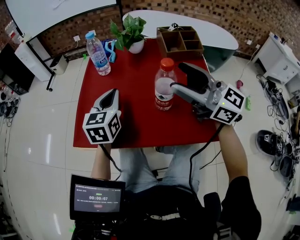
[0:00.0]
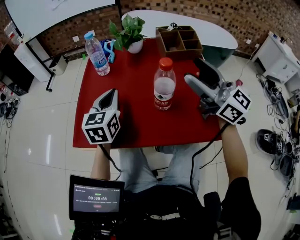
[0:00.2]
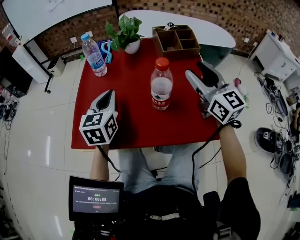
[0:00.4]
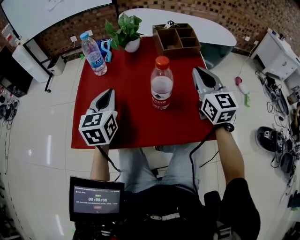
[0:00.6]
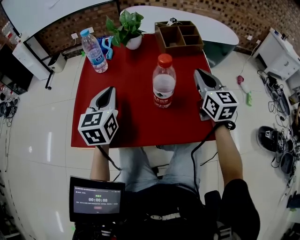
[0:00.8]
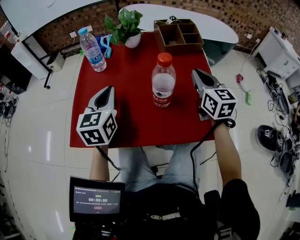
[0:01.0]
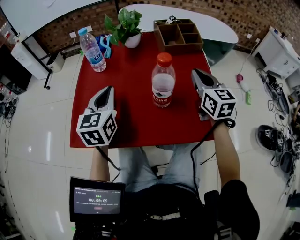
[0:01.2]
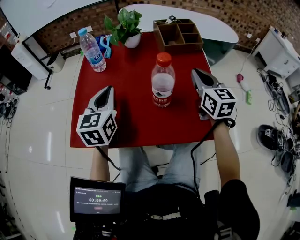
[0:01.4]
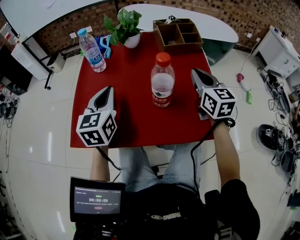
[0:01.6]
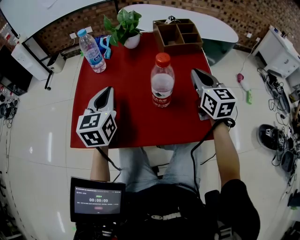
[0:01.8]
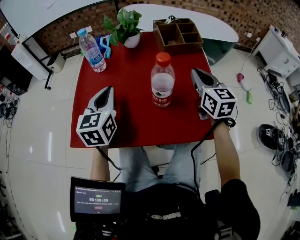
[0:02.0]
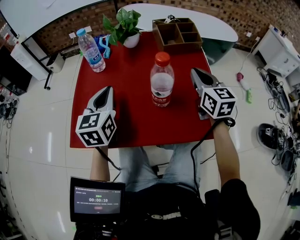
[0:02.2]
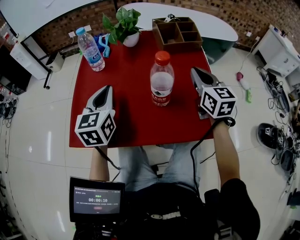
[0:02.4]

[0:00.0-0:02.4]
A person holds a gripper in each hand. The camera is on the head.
0:00.0 to 0:01.2: The right gripper moves downward, to the right and forward, some 20 cm, rotates about 50 degrees, and closes.
0:01.2 to 0:02.4: The two grippers keep their place.

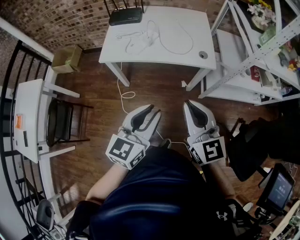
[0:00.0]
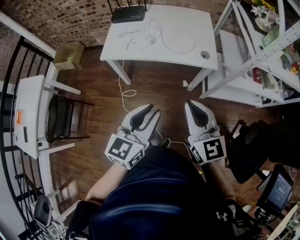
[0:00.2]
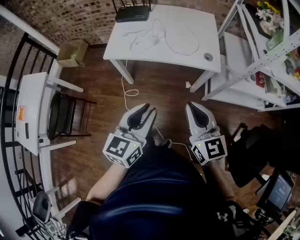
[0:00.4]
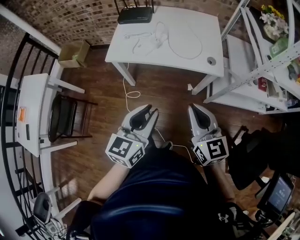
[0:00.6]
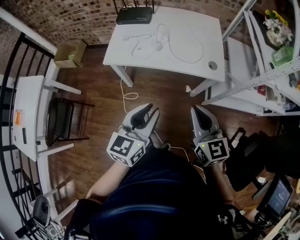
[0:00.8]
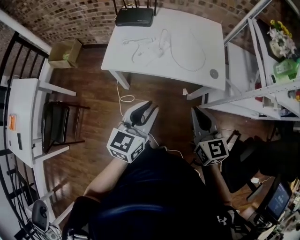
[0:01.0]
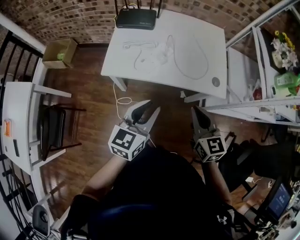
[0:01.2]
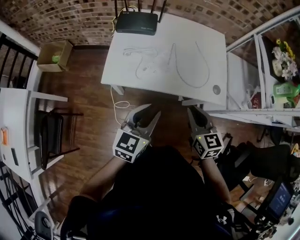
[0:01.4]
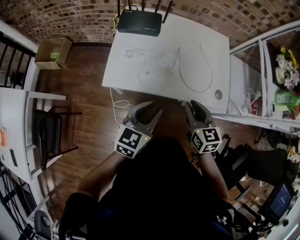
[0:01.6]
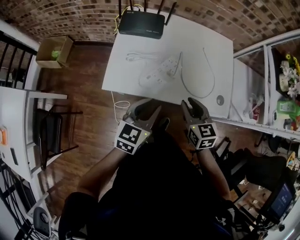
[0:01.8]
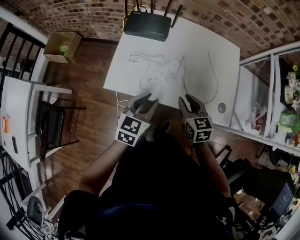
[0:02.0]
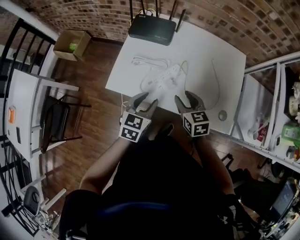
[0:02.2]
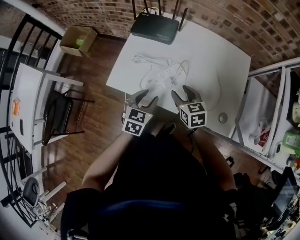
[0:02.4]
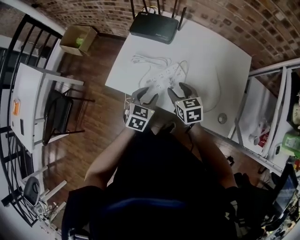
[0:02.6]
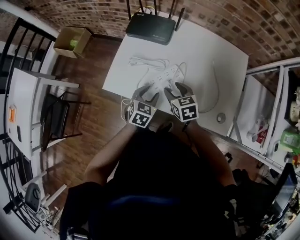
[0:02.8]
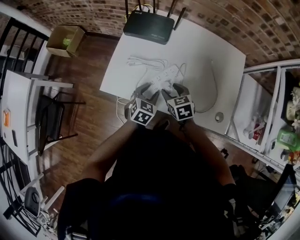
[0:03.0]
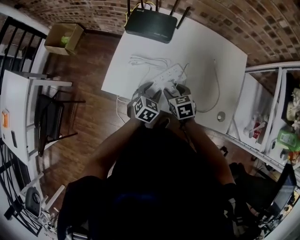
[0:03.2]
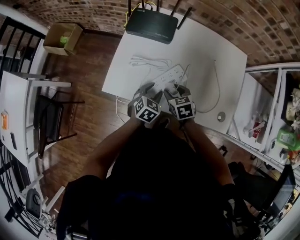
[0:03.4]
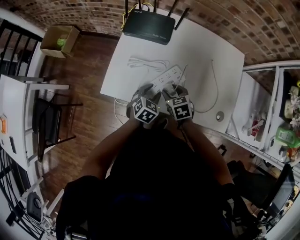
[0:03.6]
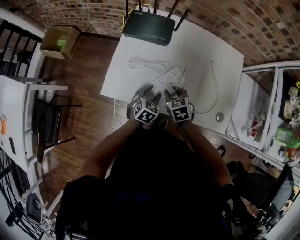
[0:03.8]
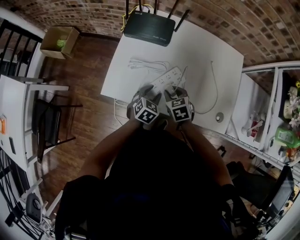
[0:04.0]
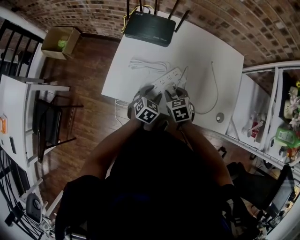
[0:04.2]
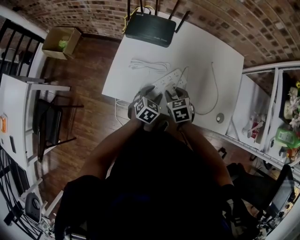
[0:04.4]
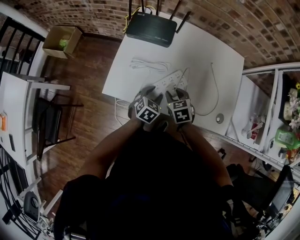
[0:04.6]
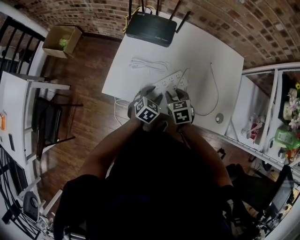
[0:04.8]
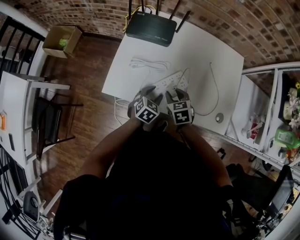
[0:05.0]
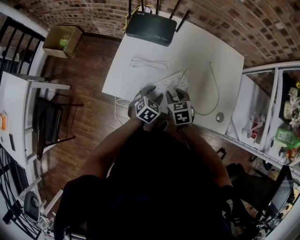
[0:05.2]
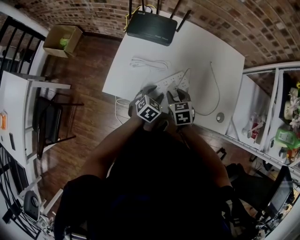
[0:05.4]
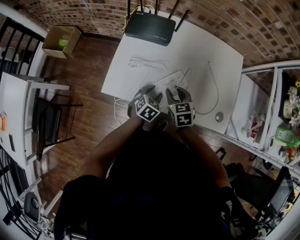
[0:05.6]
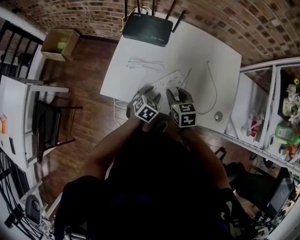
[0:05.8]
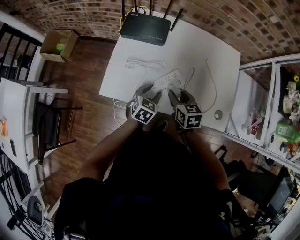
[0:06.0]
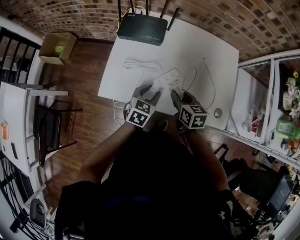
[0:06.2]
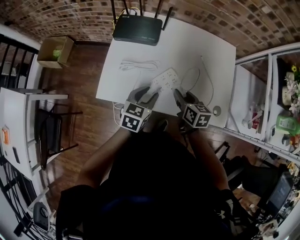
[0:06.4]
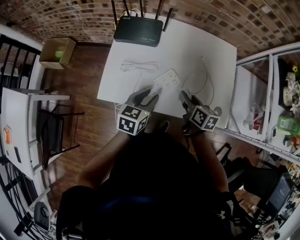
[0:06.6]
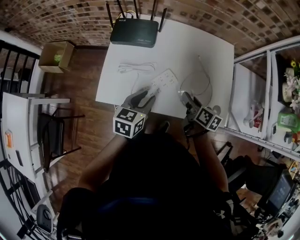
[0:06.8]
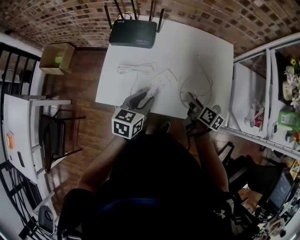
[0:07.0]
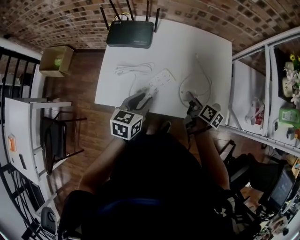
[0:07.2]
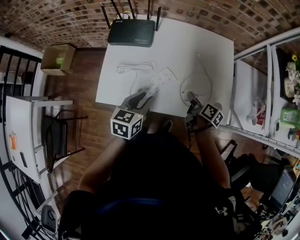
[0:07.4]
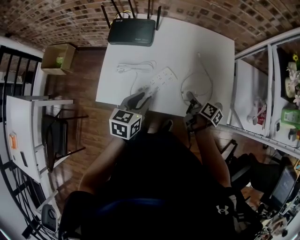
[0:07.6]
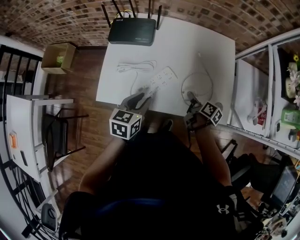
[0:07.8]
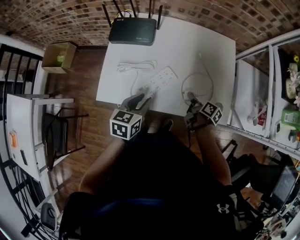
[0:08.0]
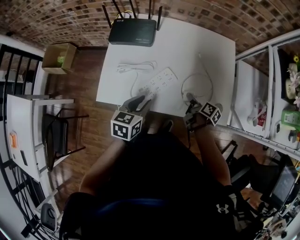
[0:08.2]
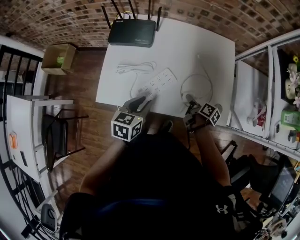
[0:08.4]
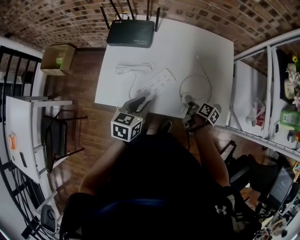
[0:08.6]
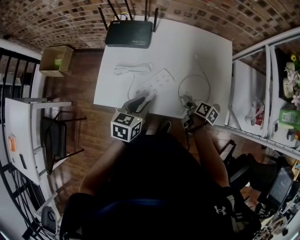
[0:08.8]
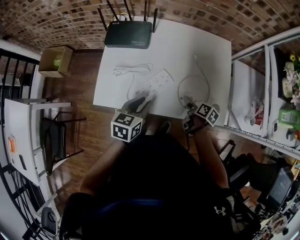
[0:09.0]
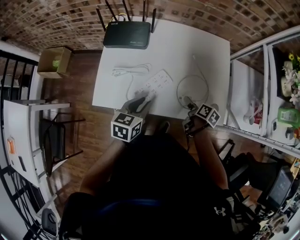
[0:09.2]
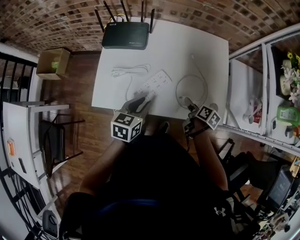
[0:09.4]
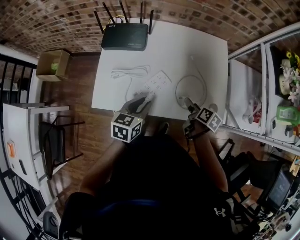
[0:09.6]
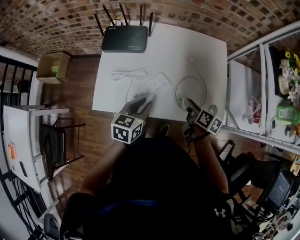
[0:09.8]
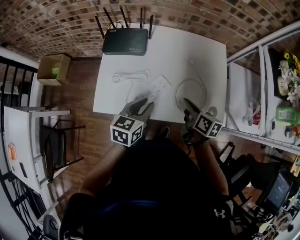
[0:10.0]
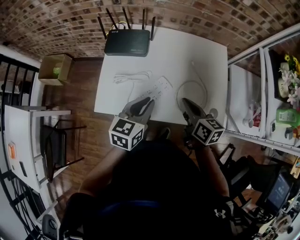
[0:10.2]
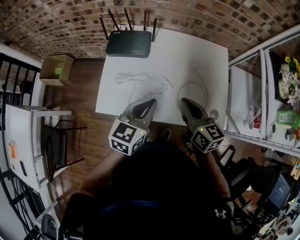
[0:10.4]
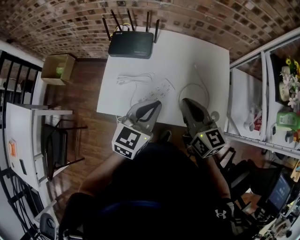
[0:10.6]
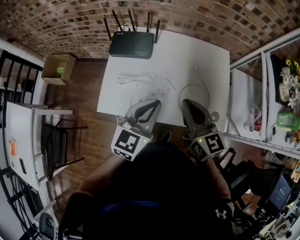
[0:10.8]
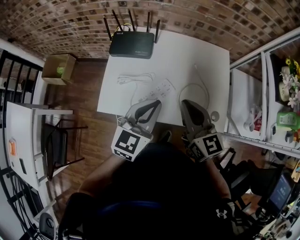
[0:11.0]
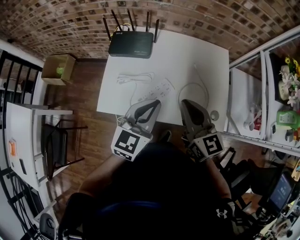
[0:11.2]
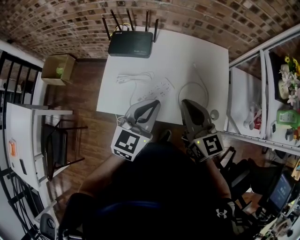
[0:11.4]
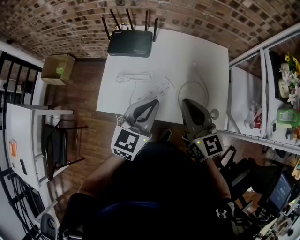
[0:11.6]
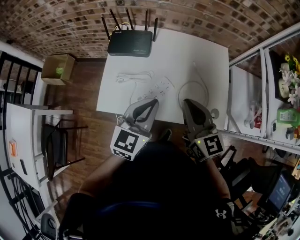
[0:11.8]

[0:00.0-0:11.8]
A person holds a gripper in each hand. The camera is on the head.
0:00.0 to 0:01.4: The right gripper travels forward and downward by roughly 25 cm, and turns by roughly 20 degrees, while the left gripper heads forward and to the left, covering about 25 cm.
0:01.4 to 0:03.0: The right gripper travels forward and downward by roughly 25 cm, turns by some 30 degrees, and opens up. Meanwhile the left gripper travels downward and forward by about 30 cm, and turns by about 30 degrees.
0:03.0 to 0:04.4: The grippers stay close to where they were, moving slightly.
0:04.4 to 0:06.0: The right gripper is displaced upward by about 5 cm, and rotates some 20 degrees.
0:06.0 to 0:07.4: The left gripper travels upward by about 10 cm. The right gripper travels to the right by some 15 cm, and rotates around the line of its fingers by roughly 50 degrees, clockwise from behind.
0:07.4 to 0:08.8: The right gripper travels downward by approximately 5 cm, and opens.
0:08.8 to 0:10.4: The left gripper goes approximately 10 cm upward, and closes. The right gripper travels upward and to the left by some 25 cm, rotates around the line of its fingers by about 40 degrees, counterclockwise from behind, and closes up.
0:10.4 to 0:11.8: The right gripper heads upward, covering some 5 cm.

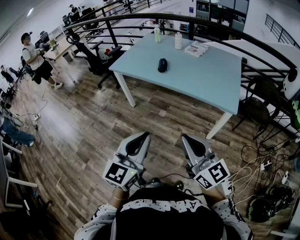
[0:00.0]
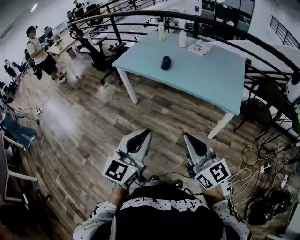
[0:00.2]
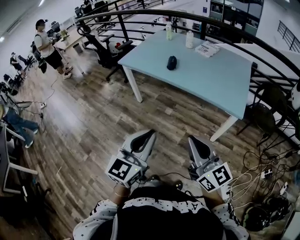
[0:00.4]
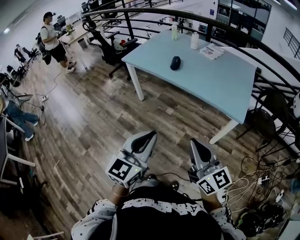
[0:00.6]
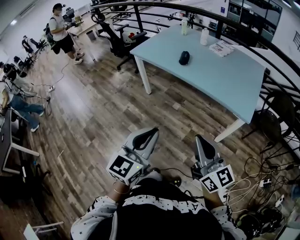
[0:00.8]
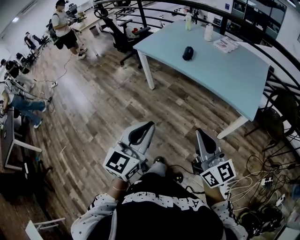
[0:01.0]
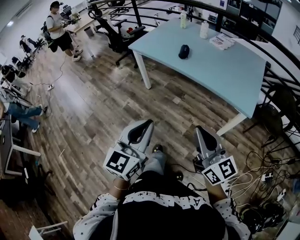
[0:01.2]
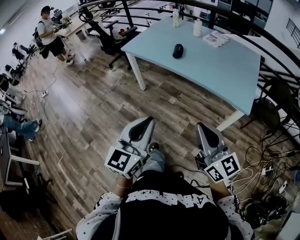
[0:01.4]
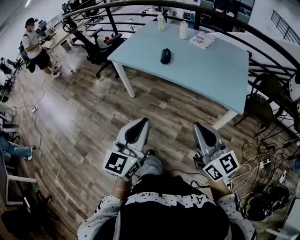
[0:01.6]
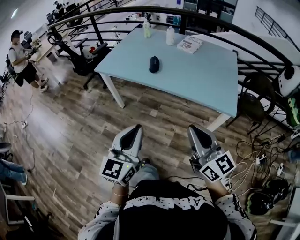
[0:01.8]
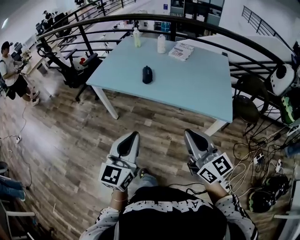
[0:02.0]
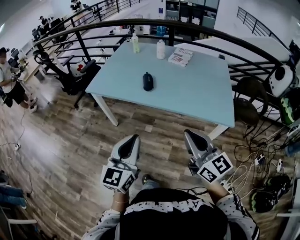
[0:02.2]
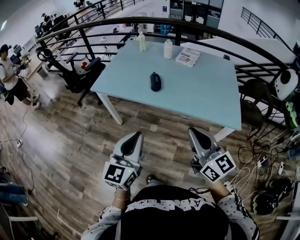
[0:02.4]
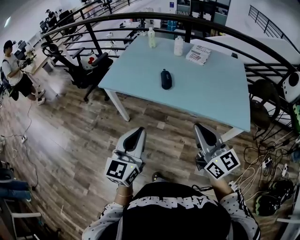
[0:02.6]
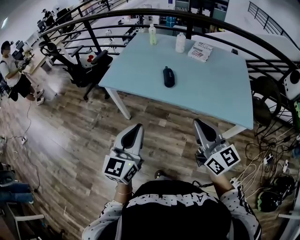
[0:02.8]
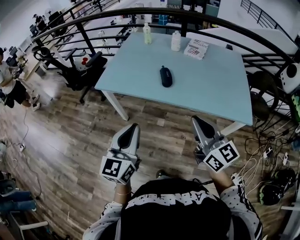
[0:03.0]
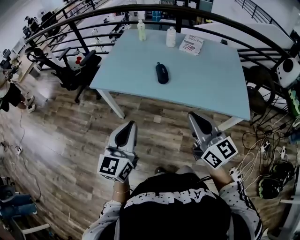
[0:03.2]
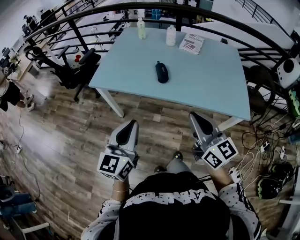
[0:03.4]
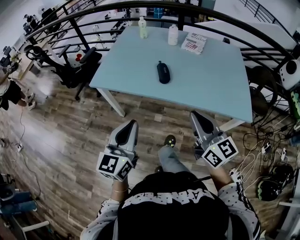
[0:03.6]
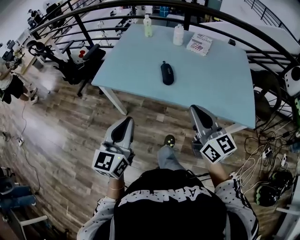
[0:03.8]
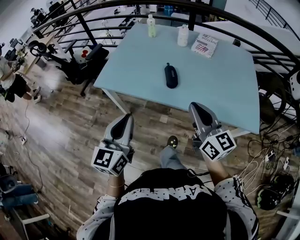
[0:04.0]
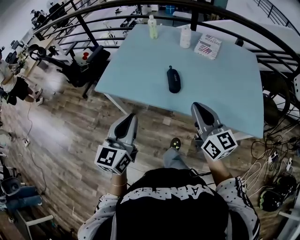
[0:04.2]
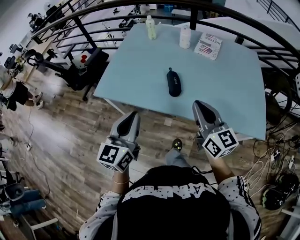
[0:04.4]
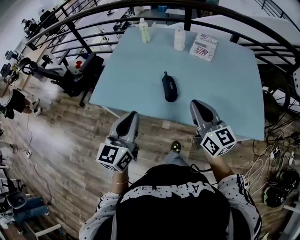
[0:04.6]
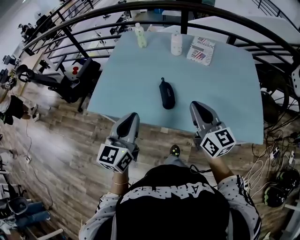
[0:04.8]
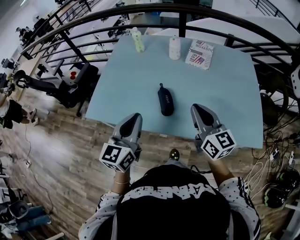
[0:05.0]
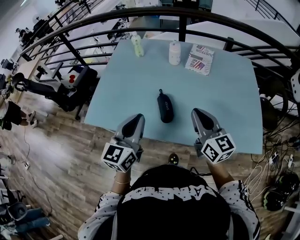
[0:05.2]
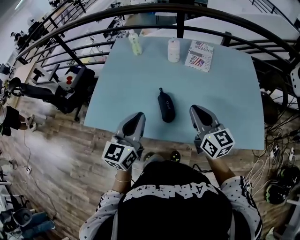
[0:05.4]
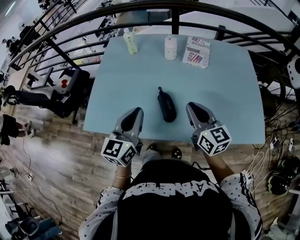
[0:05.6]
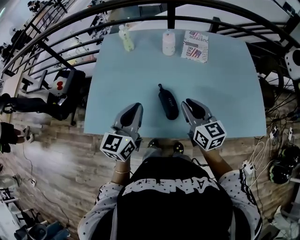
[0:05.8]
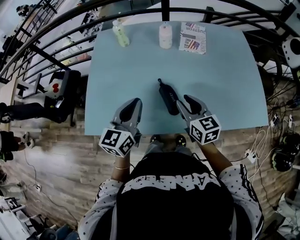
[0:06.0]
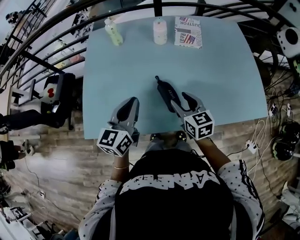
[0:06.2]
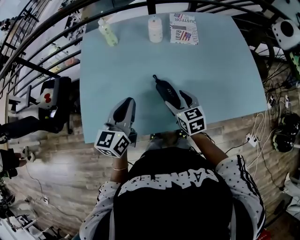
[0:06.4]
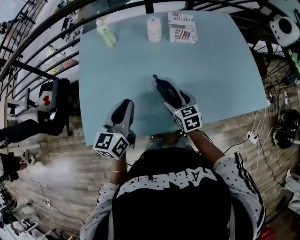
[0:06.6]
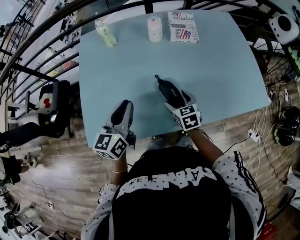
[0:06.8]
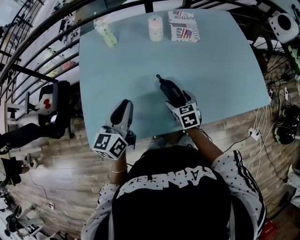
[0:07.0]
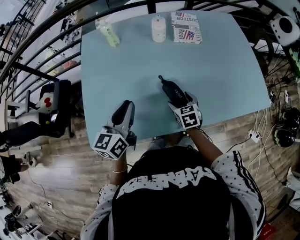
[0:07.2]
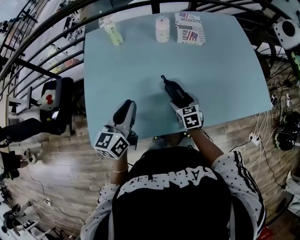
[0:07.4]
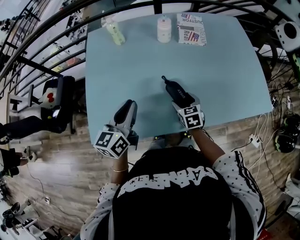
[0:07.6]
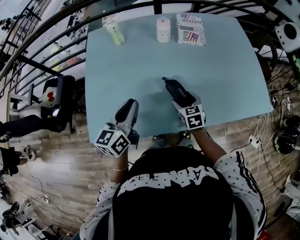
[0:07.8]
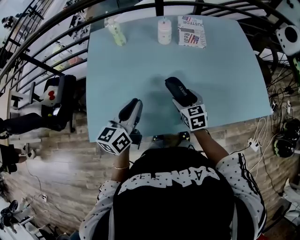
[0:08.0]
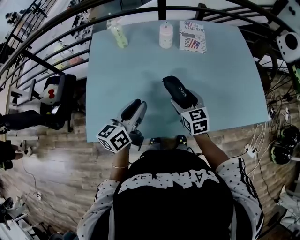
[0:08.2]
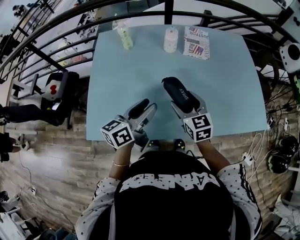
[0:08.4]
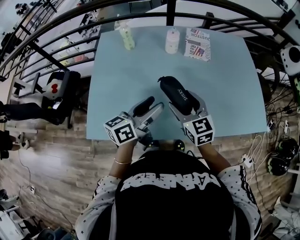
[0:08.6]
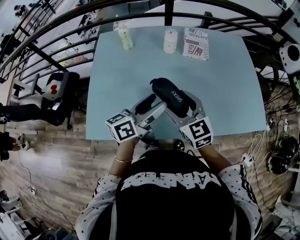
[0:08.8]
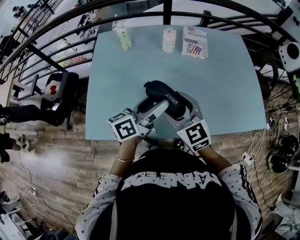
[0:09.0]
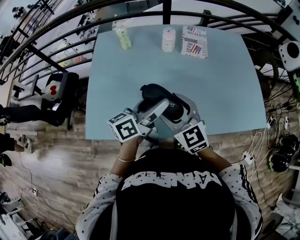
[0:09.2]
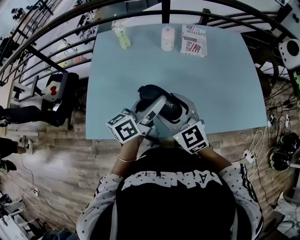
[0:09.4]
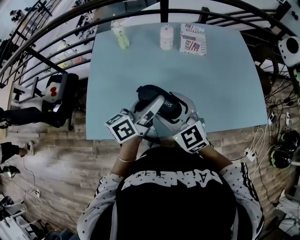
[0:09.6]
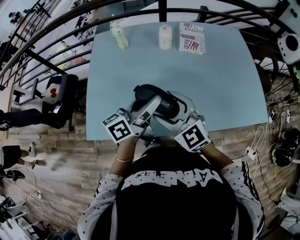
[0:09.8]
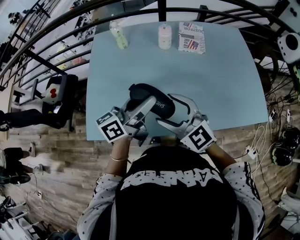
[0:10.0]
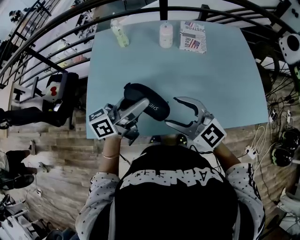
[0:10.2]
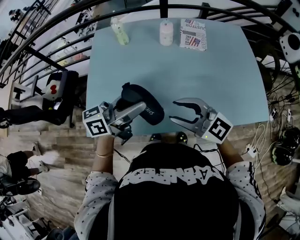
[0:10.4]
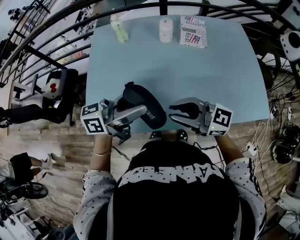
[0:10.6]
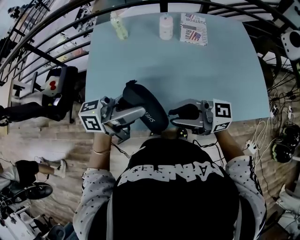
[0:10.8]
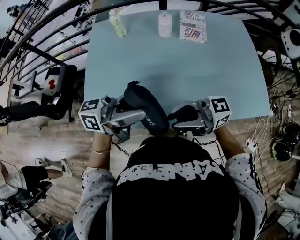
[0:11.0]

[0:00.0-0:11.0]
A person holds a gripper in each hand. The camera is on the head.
0:00.0 to 0:01.6: Both grippers move forward, some 10 cm.
0:01.6 to 0:03.2: The two grippers go approximately 30 cm forward and to the left.
0:03.2 to 0:04.8: Both grippers travel together forward, approximately 30 cm.
0:04.8 to 0:06.2: The left gripper travels forward by roughly 20 cm. Meanwhile the right gripper shifts some 20 cm forward, downward and to the left, swivels some 30 degrees, and opens its fingers.
0:06.2 to 0:07.8: The left gripper moves approximately 5 cm; the right gripper travels downward by some 10 cm.
0:07.8 to 0:09.4: The right gripper travels upward by about 20 cm, and swivels approximately 40 degrees, while the left gripper travels to the right by roughly 10 cm, and changes its angle by some 30 degrees.
0:09.4 to 0:11.0: The left gripper is displaced upward by roughly 5 cm, and rotates approximately 40 degrees; the right gripper changes place by about 10 cm, tips its fingers upward by approximately 30 degrees, and closes its fingers.
